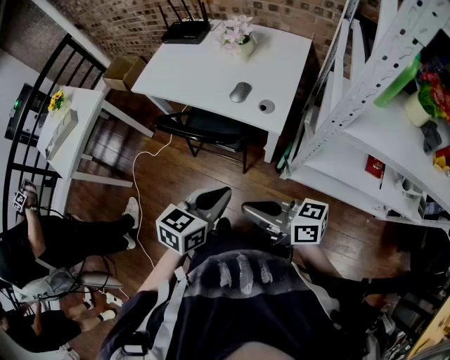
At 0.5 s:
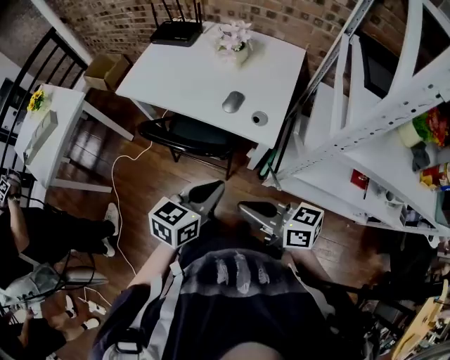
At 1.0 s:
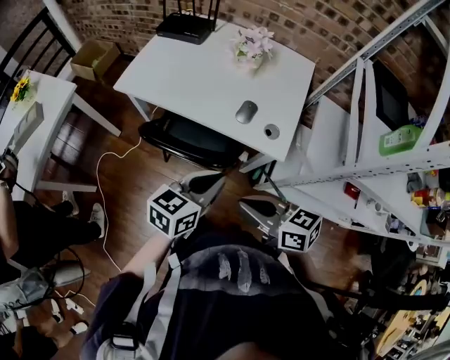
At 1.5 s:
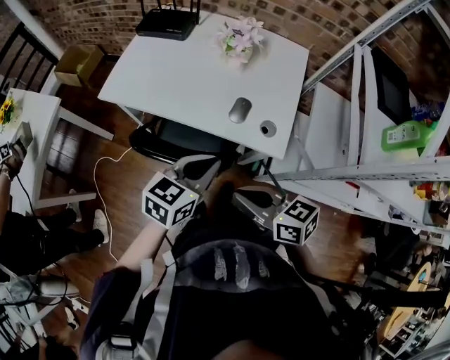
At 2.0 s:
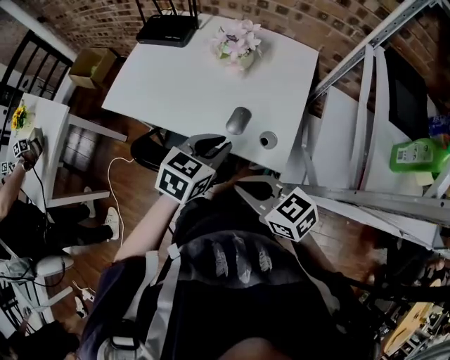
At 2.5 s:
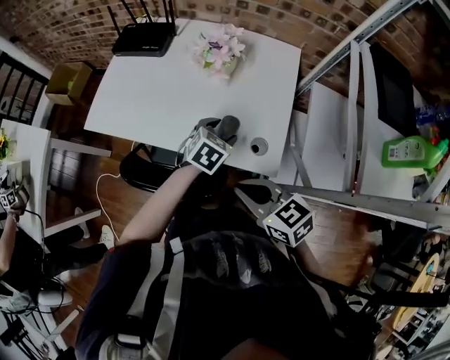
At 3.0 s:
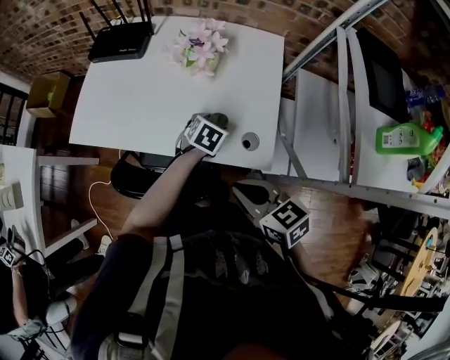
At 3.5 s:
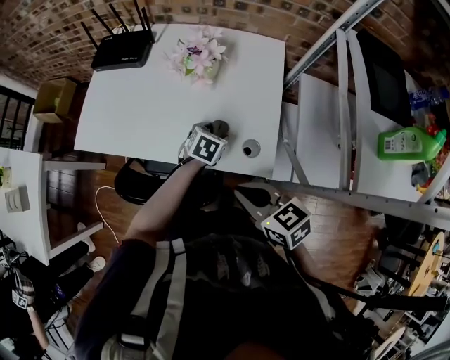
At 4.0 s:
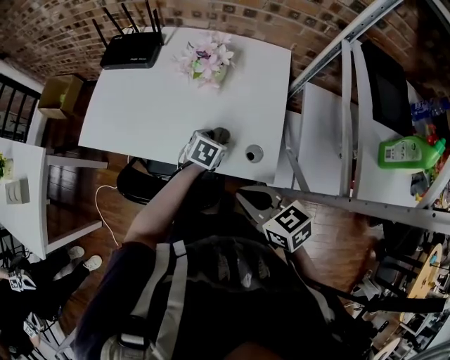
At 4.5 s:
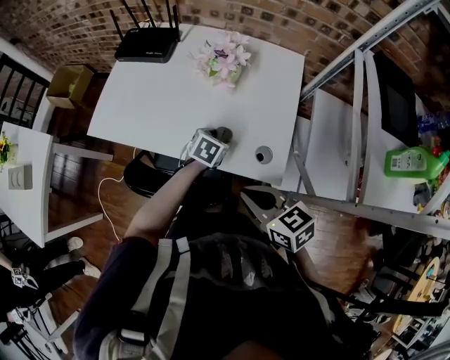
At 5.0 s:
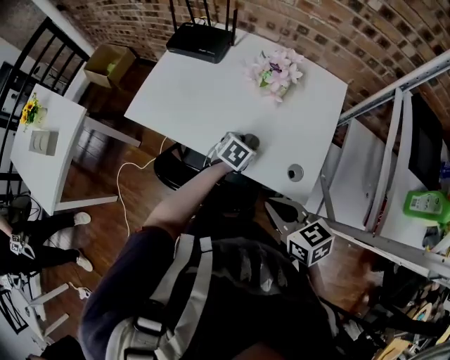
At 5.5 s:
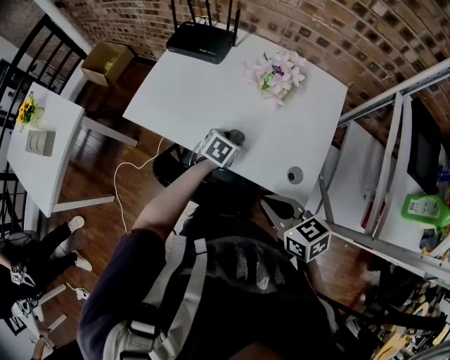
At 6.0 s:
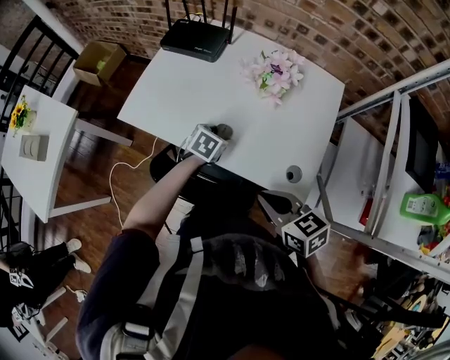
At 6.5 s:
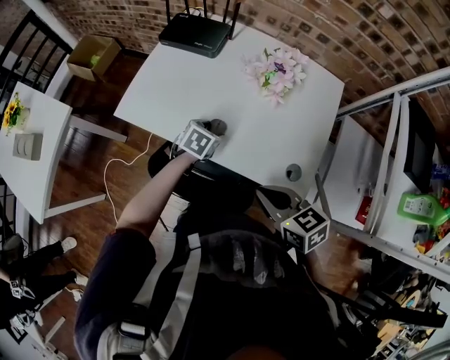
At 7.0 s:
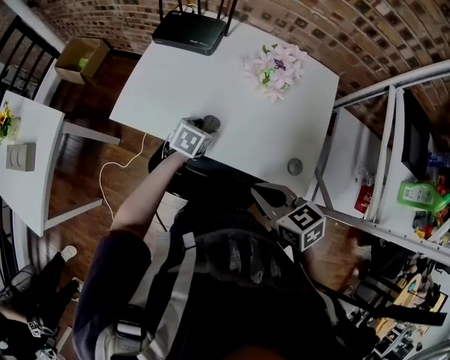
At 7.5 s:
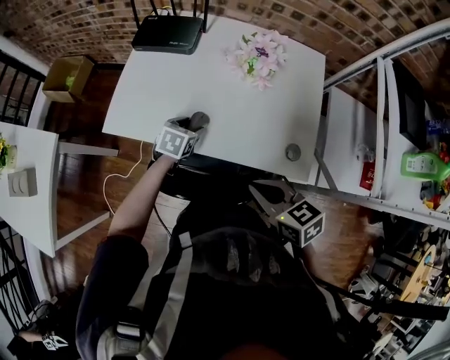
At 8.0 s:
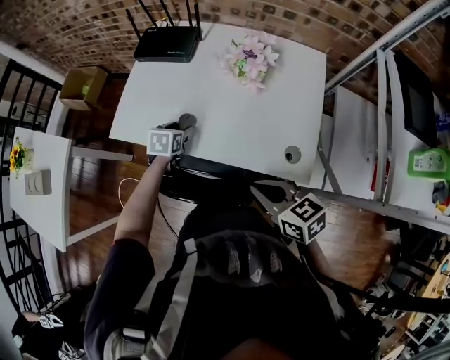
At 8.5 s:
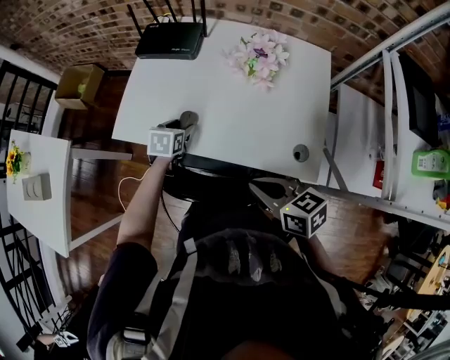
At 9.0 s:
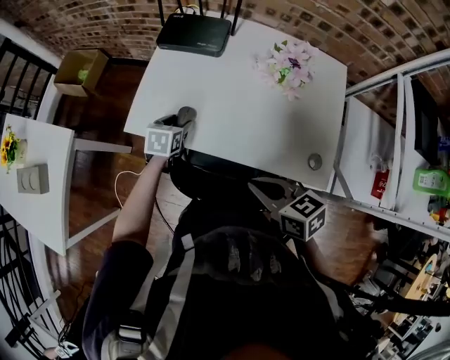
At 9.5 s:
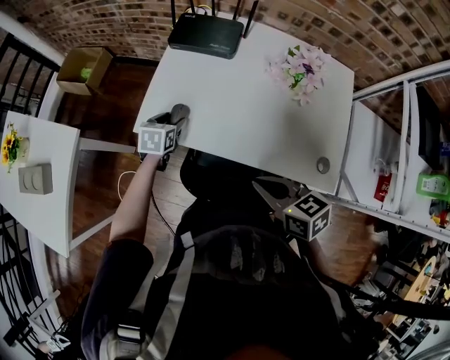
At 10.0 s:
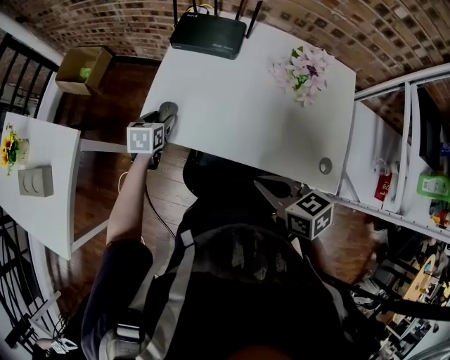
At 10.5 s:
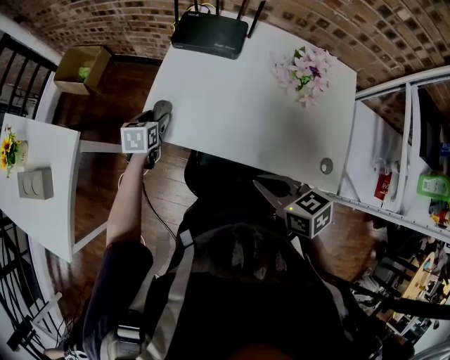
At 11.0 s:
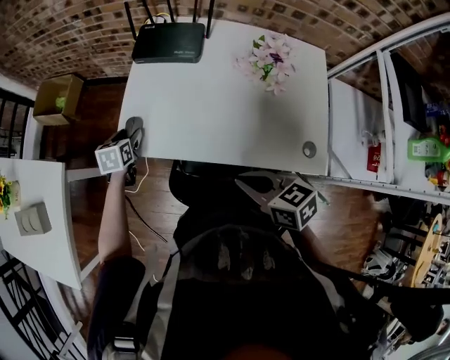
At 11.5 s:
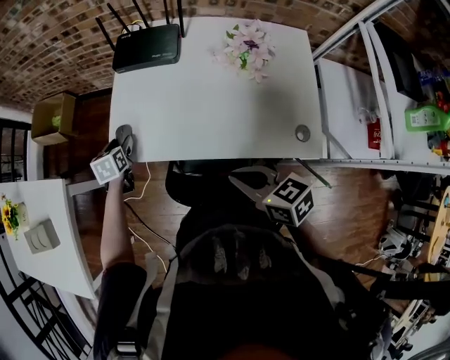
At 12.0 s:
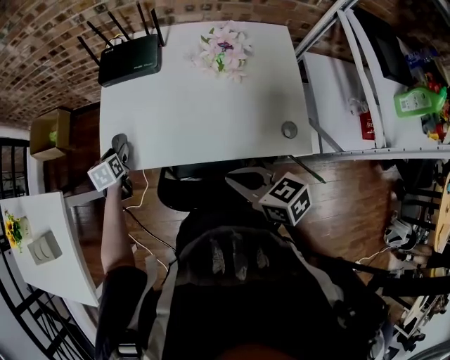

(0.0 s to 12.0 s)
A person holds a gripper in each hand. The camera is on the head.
0.0 s - 2.0 s: The two grippers go approximately 25 cm forward. The right gripper changes its angle by roughly 40 degrees.
2.0 s - 4.0 s: The left gripper is displaced downward and forward by approximately 20 cm, turns by about 20 degrees, and opens its fingers, while the right gripper changes place by about 5 cm.
4.0 s - 6.0 s: The right gripper moves to the left, roughly 5 cm, while the left gripper moves to the left, some 15 cm.
6.0 s - 8.0 s: The left gripper moves to the left, some 10 cm.
8.0 s - 10.0 s: Both grippers travel together to the left and forward, roughly 20 cm.
10.0 s - 12.0 s: There are only small adjustments of the grippers.

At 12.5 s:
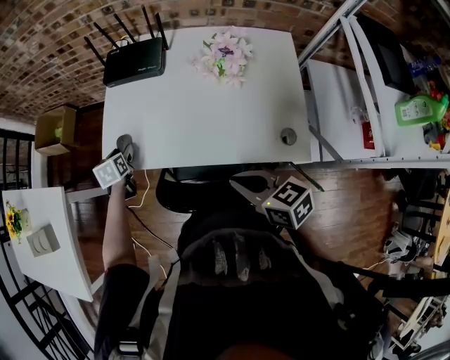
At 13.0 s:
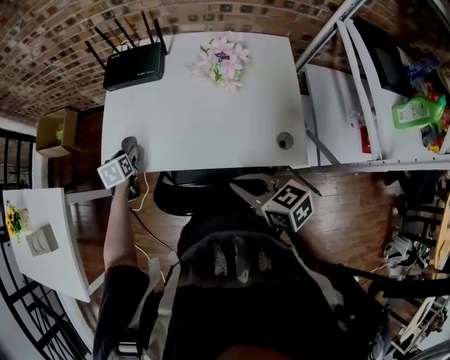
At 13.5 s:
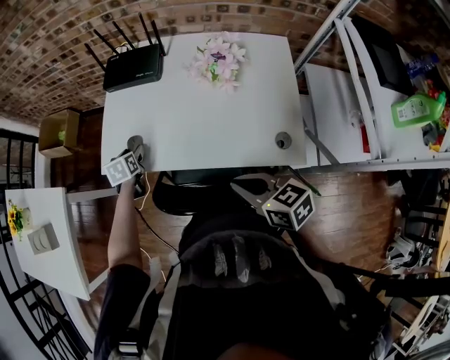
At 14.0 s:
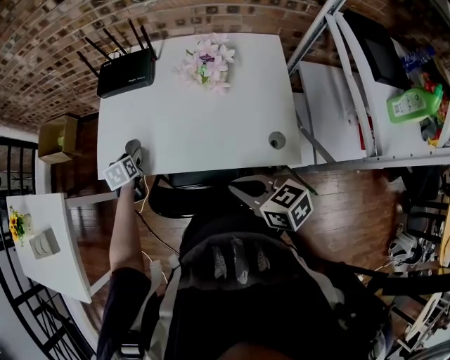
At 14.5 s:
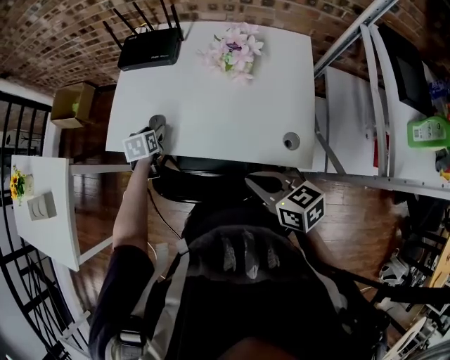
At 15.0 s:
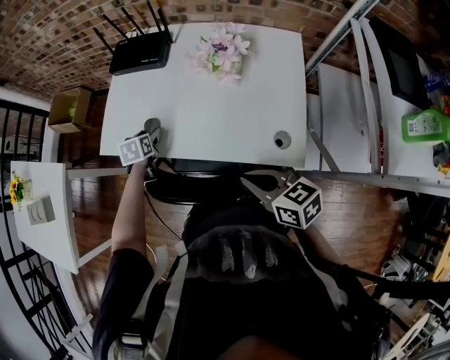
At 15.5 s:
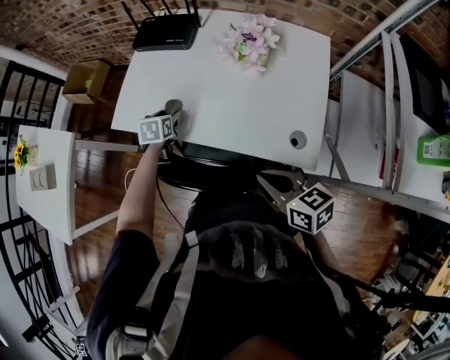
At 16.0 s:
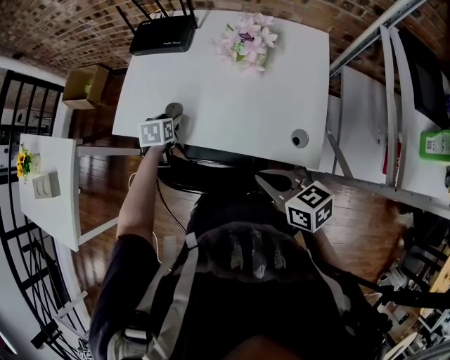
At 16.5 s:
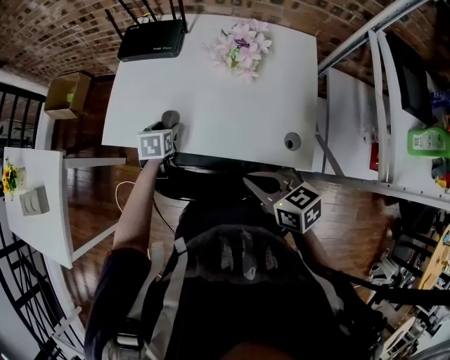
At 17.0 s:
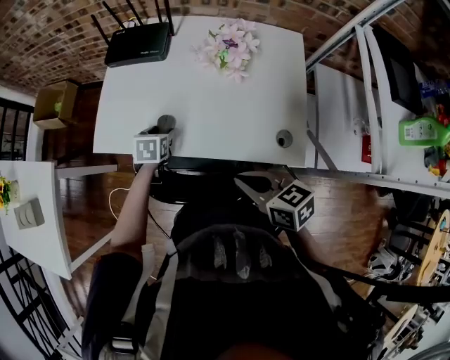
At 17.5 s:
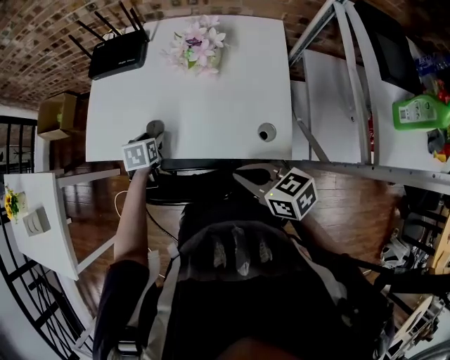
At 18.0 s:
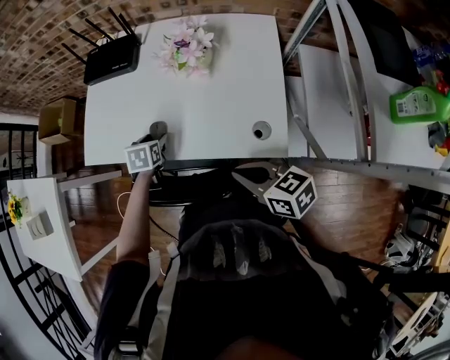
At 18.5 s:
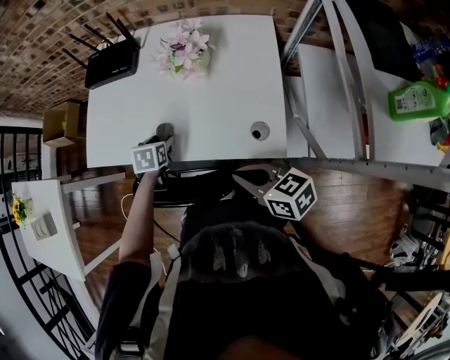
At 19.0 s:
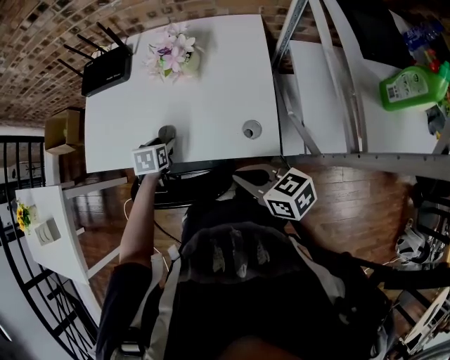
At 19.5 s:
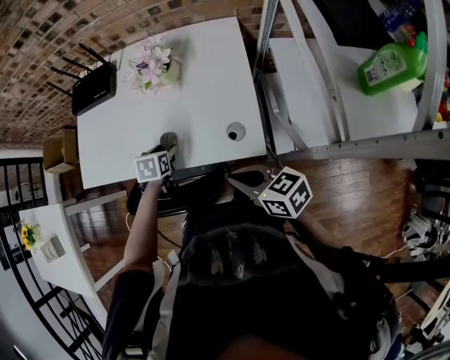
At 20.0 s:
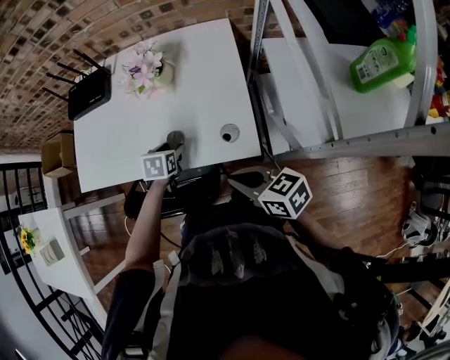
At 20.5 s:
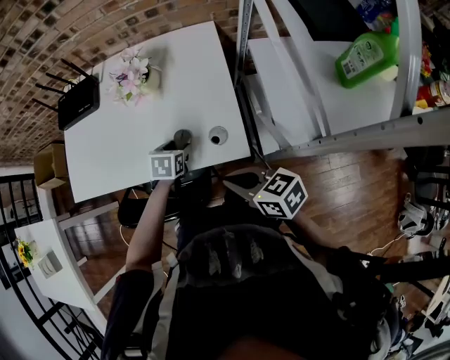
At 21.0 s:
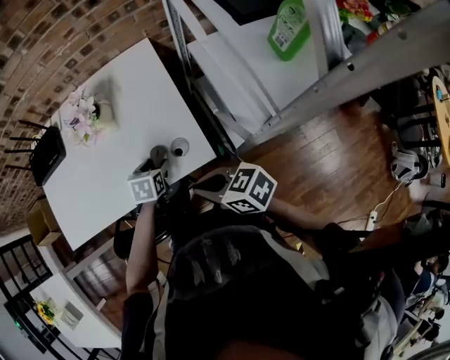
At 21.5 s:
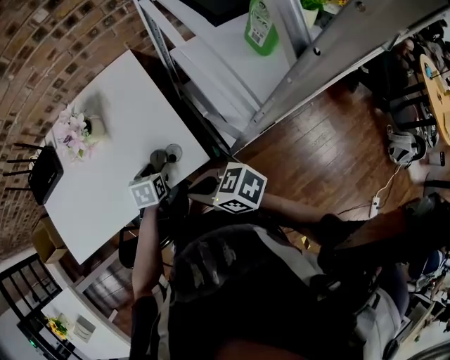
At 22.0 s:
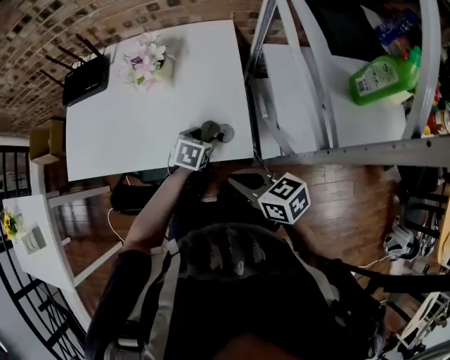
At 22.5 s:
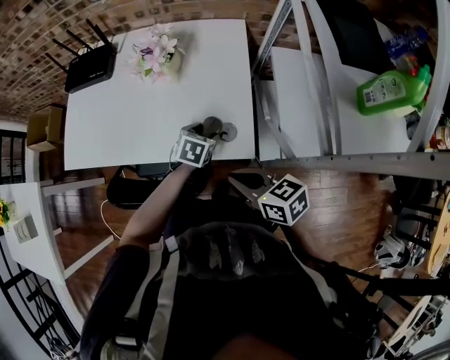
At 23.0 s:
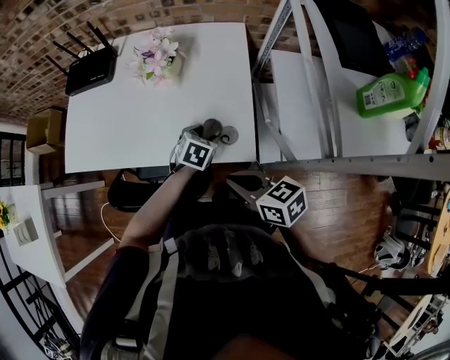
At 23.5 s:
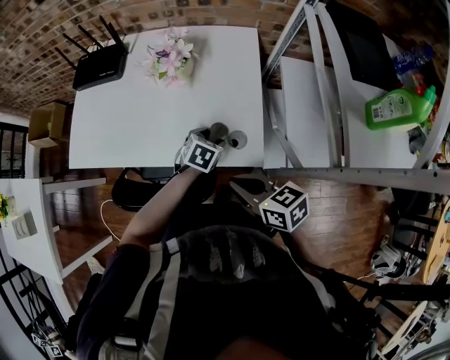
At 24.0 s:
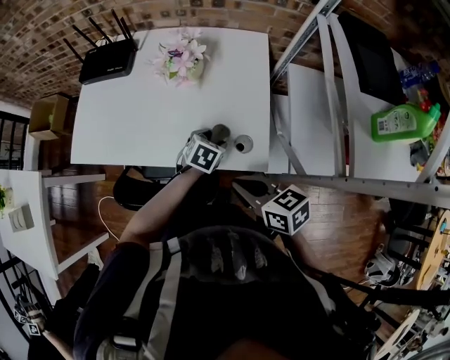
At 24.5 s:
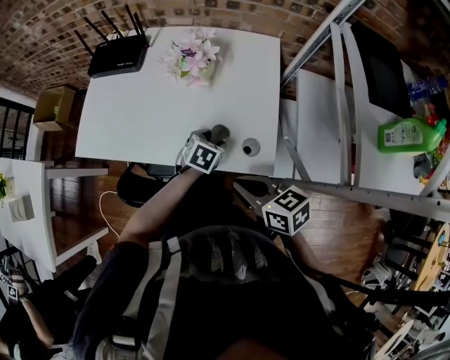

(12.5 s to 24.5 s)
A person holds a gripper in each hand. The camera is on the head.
12.5 s - 14.5 s: The right gripper travels to the right by approximately 5 cm. The left gripper is displaced to the right and backward by about 10 cm.
14.5 s - 16.5 s: The left gripper ends up about 5 cm from where it was.
16.5 s - 18.5 s: The left gripper goes approximately 10 cm to the right and backward, while the right gripper heads to the right, covering some 10 cm.
18.5 s - 20.5 s: The right gripper travels to the right by roughly 5 cm. Meanwhile the left gripper moves to the right, about 20 cm.
20.5 s - 22.5 s: The left gripper moves to the right, roughly 5 cm.
22.5 s - 24.5 s: The left gripper shifts approximately 5 cm to the left. Meanwhile the right gripper moves about 5 cm.

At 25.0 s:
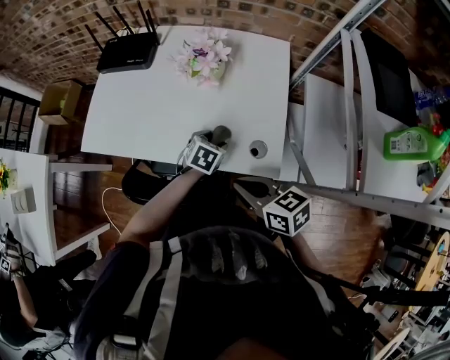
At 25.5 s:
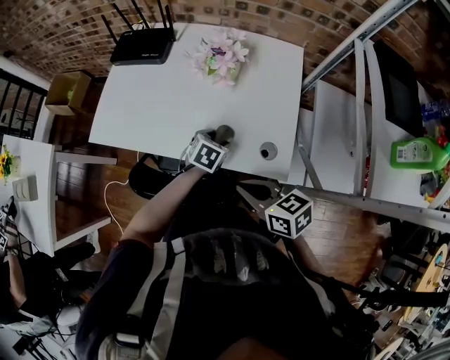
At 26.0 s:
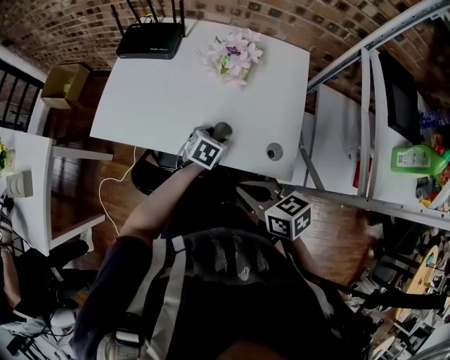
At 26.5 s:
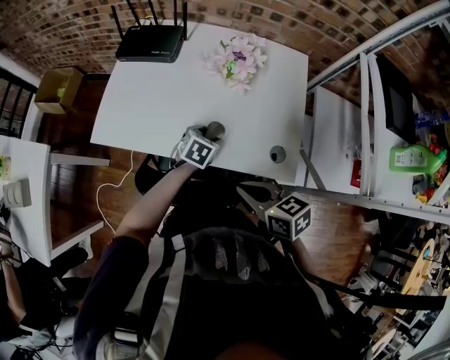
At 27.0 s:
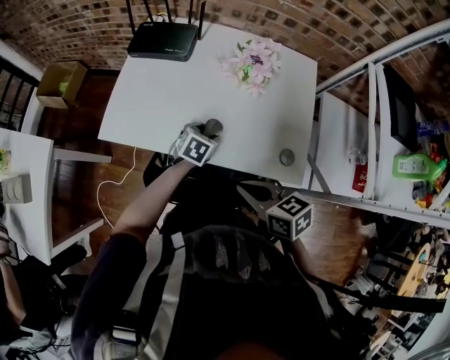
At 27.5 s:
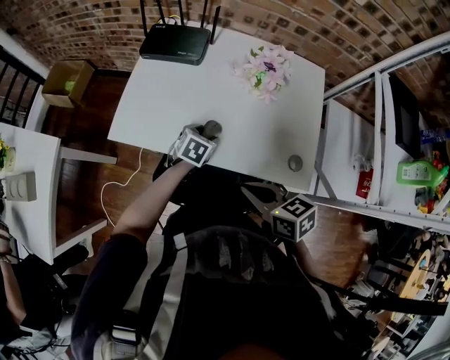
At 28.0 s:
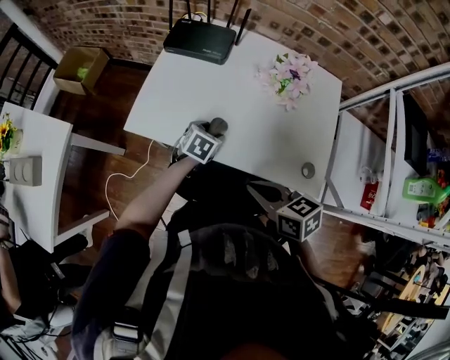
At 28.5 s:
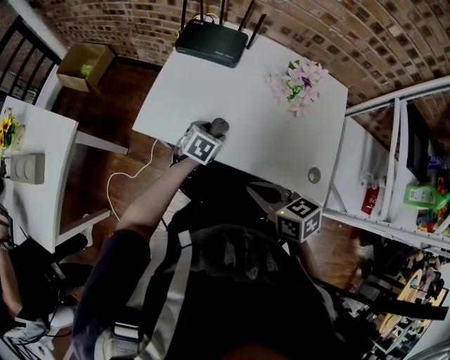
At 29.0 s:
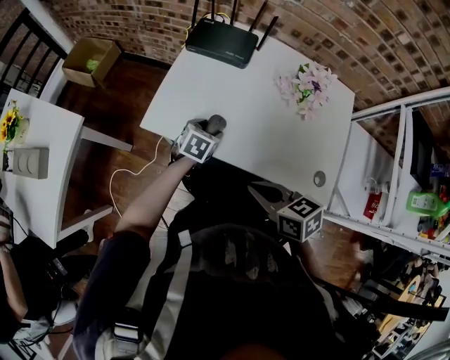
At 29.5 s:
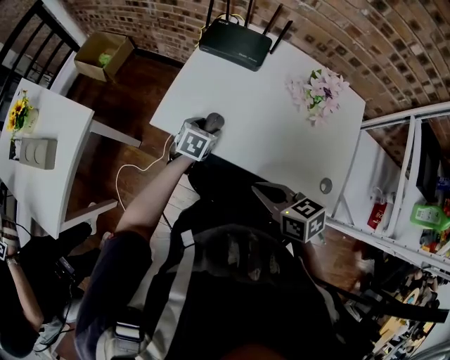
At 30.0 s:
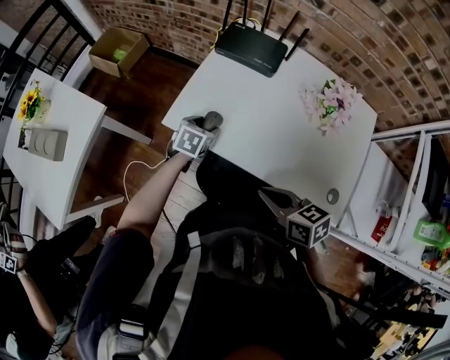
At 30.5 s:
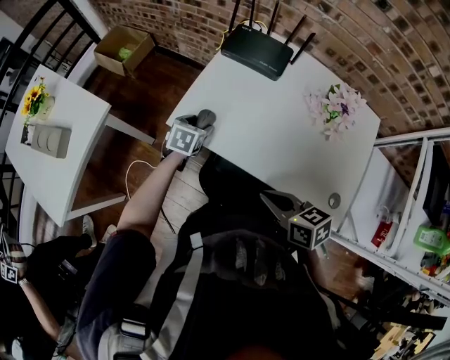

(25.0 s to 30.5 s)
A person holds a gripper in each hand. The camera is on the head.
25.0 s - 27.0 s: Both grippers move to the left, approximately 15 cm.
27.0 s - 28.5 s: Both grippers move to the left, approximately 10 cm.
28.5 s - 30.5 s: The left gripper moves to the left, about 15 cm.
